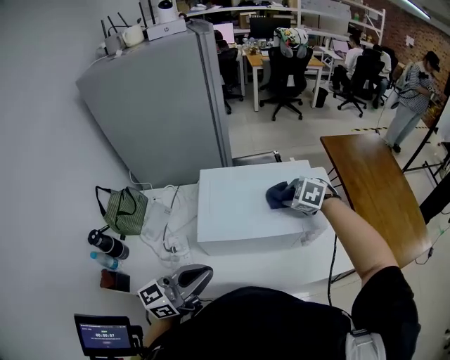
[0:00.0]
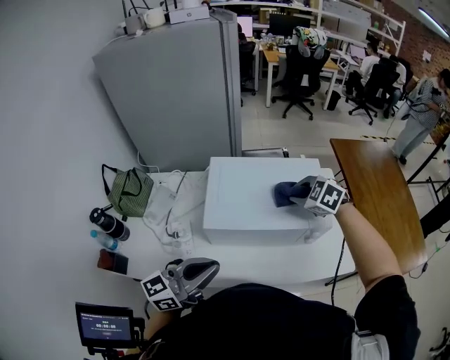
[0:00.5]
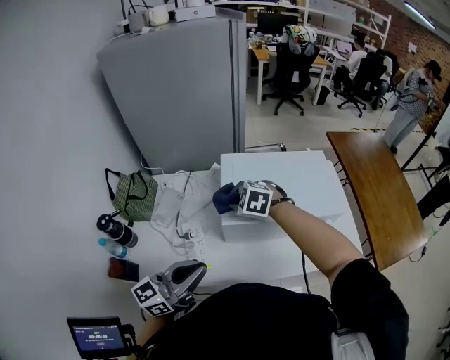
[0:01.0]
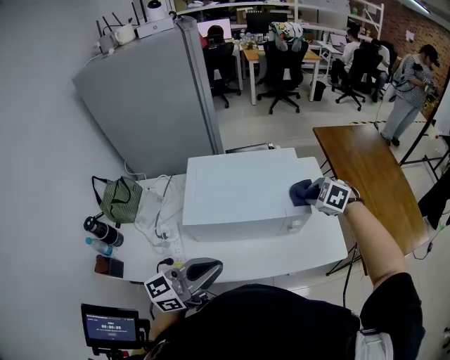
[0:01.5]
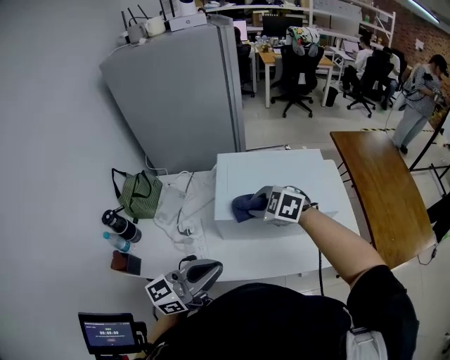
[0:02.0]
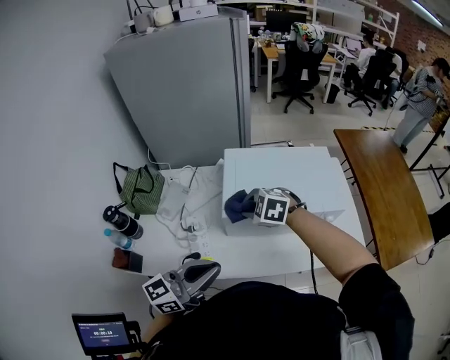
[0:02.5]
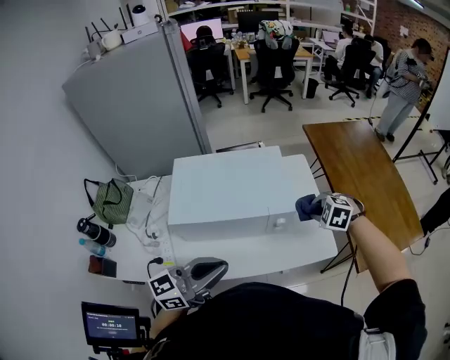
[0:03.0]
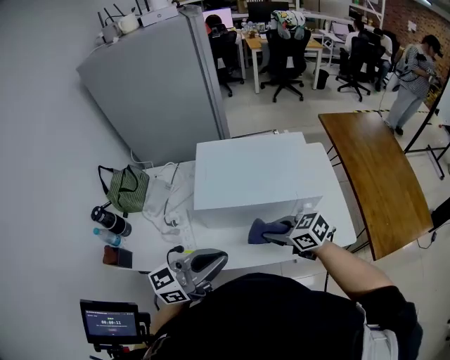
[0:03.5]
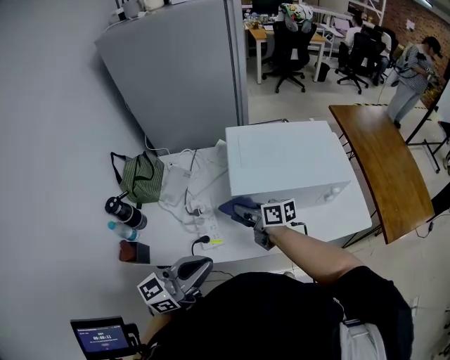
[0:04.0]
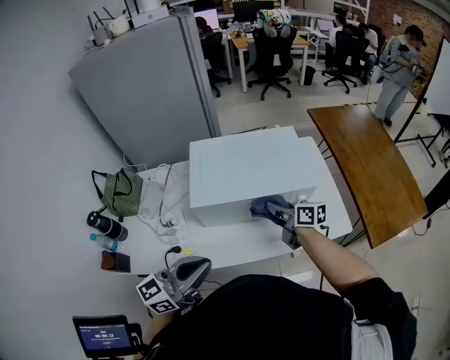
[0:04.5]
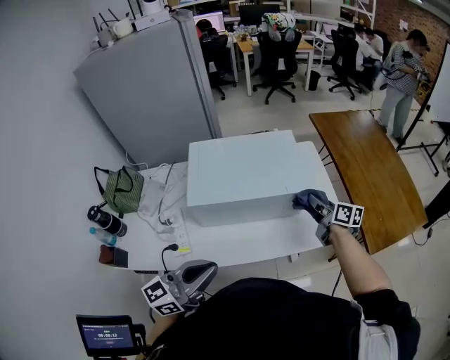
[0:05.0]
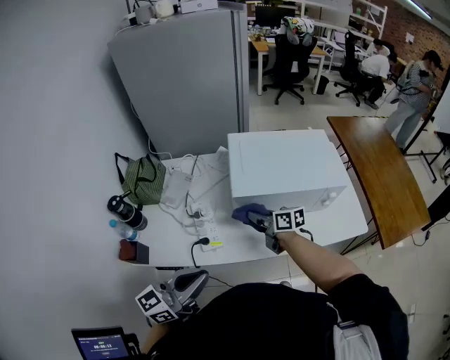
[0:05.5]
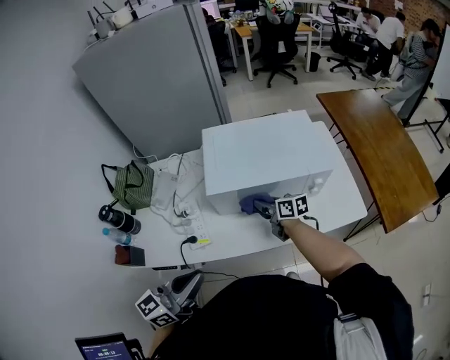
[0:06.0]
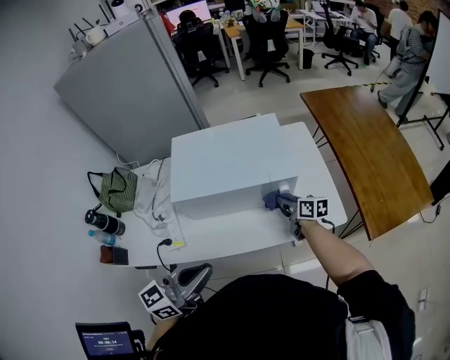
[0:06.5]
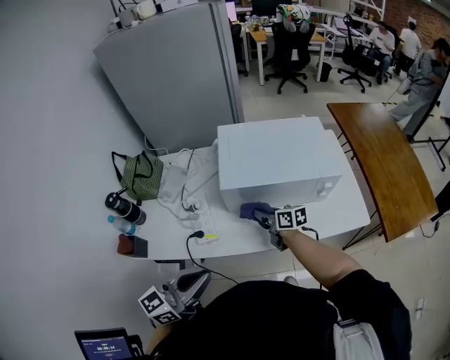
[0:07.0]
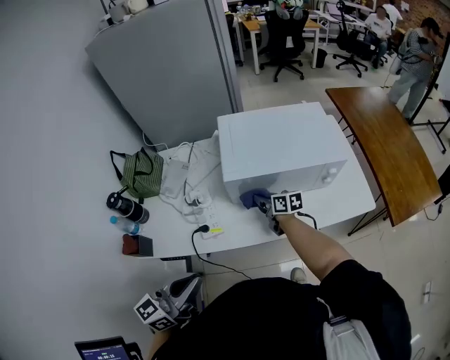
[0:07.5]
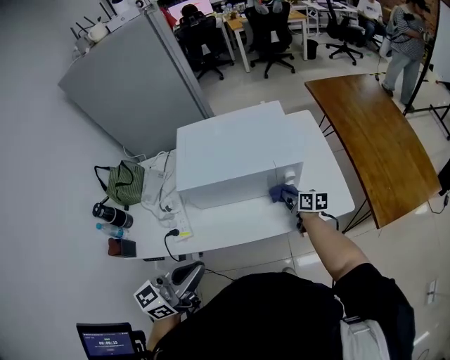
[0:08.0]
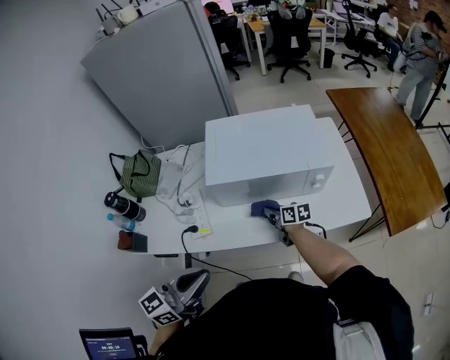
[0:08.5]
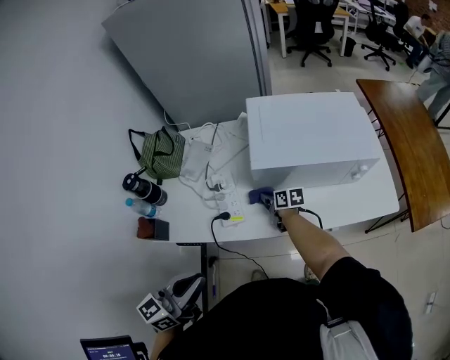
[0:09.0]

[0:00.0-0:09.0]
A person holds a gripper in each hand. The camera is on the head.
0:00.0 to 0:02.0: The left gripper swings left and right, approximately 20 cm each way, with 2 reversals; the right gripper moves left and right over some 40 cm, changing direction 2 times.
0:02.0 to 0:04.5: The right gripper rotates around the line of its fingers by about 70 degrees, clockwise from behind.
0:04.5 to 0:07.0: The right gripper goes left and right, some 40 cm each way, reversing 3 times. The left gripper moves left and right over approximately 20 cm, changing direction 3 times.
0:07.0 to 0:09.0: The left gripper goes left and right, some 25 cm each way, reversing 2 times. The right gripper shifts roughly 10 cm downward, and moves about 25 cm to the right and comes back.

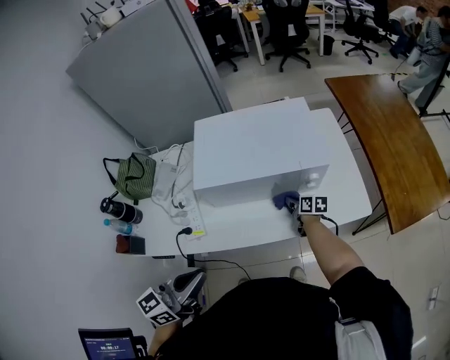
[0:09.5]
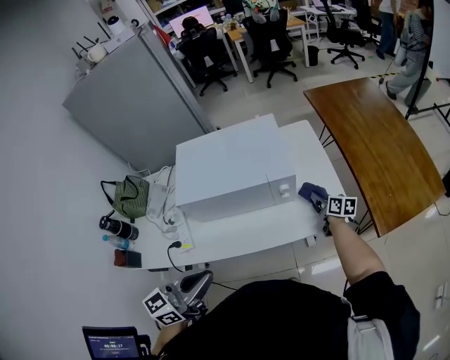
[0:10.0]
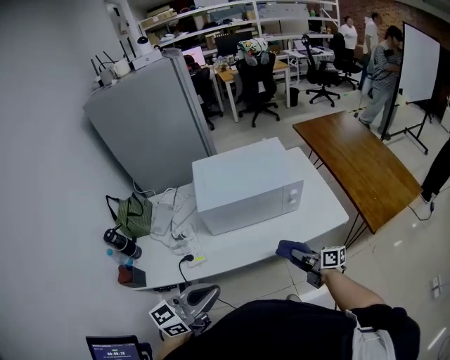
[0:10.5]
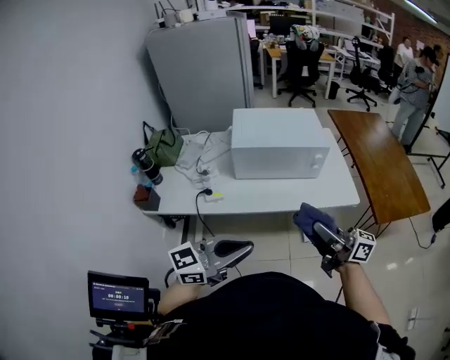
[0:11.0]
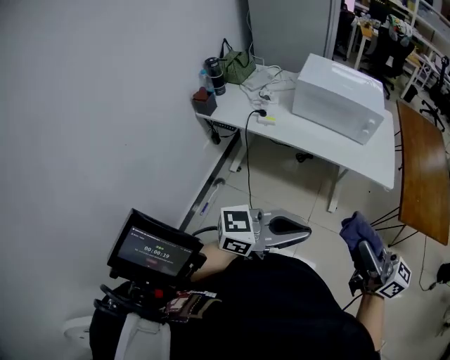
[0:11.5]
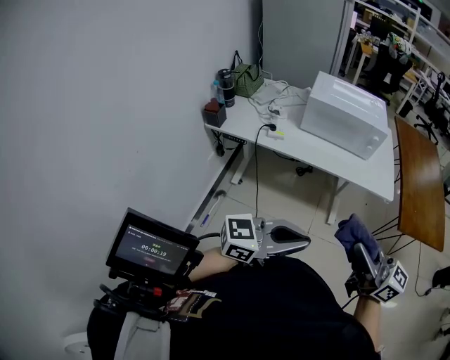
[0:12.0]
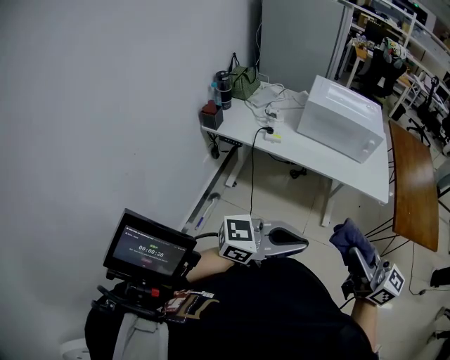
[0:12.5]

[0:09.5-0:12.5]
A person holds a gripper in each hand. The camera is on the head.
0:09.5 to 0:11.0: The right gripper travels backward and upward by some 50 cm, and tilts its fingers roughly 50 degrees upward; the left gripper heads backward, covering approximately 20 cm, and swivels approximately 20 degrees.
0:11.0 to 0:12.5: The left gripper shifts by about 20 cm. The right gripper ends up approximately 25 cm from where it was, and turns by approximately 20 degrees.

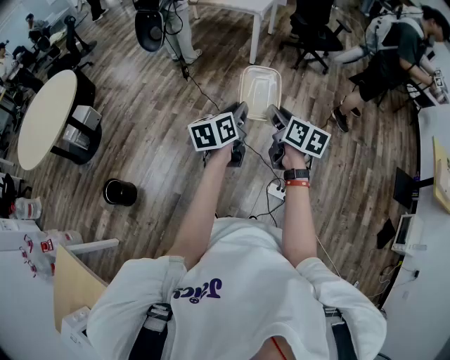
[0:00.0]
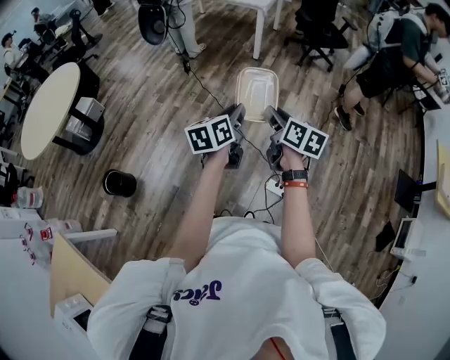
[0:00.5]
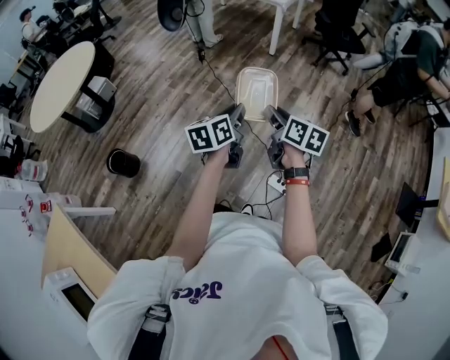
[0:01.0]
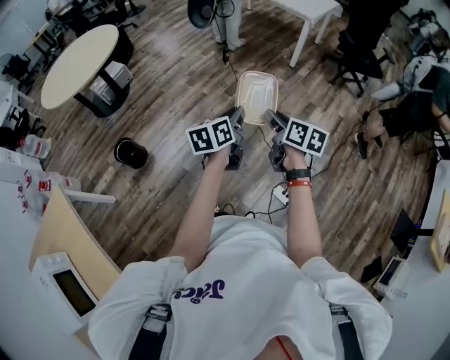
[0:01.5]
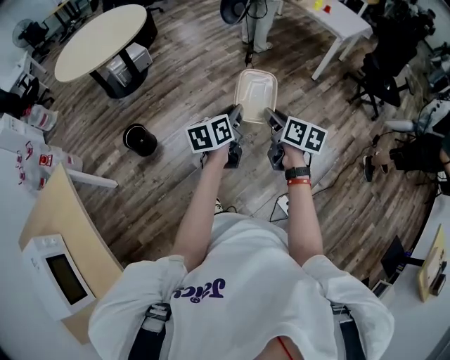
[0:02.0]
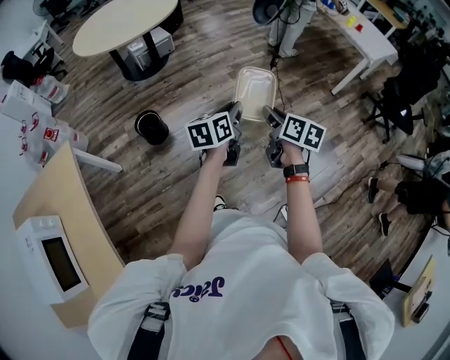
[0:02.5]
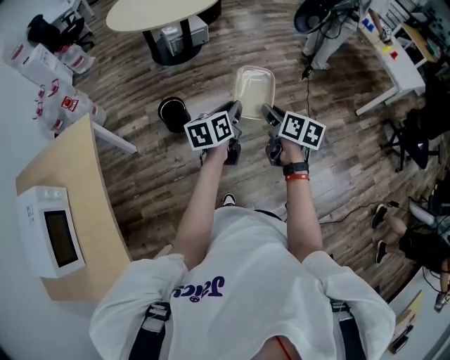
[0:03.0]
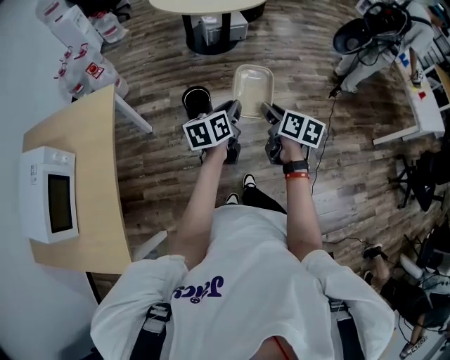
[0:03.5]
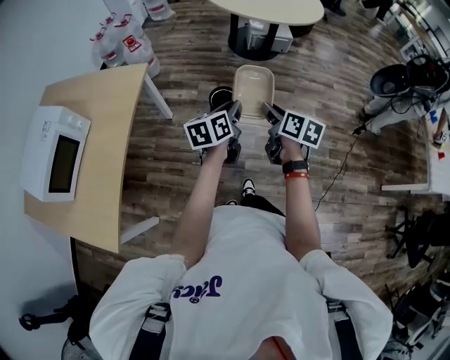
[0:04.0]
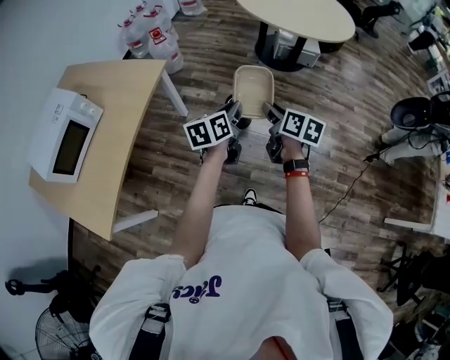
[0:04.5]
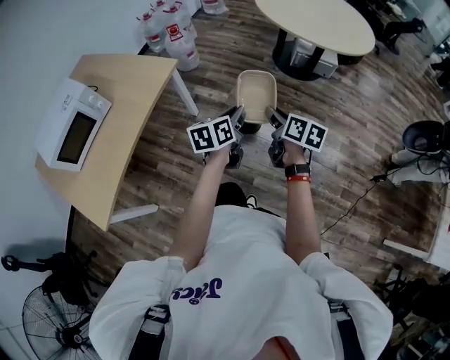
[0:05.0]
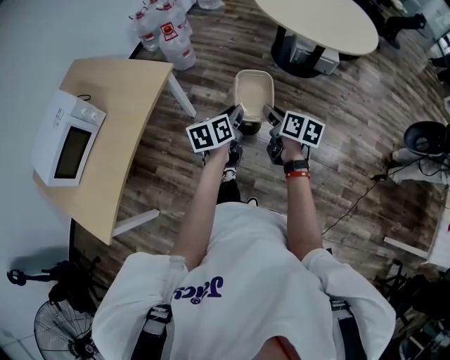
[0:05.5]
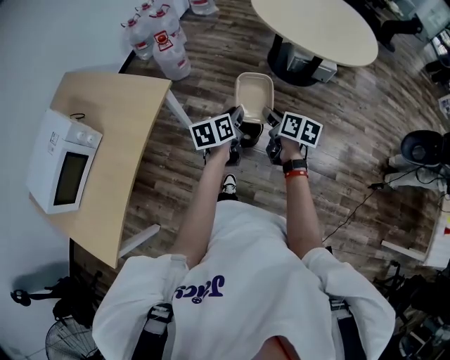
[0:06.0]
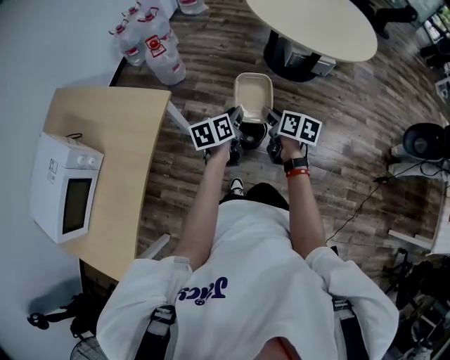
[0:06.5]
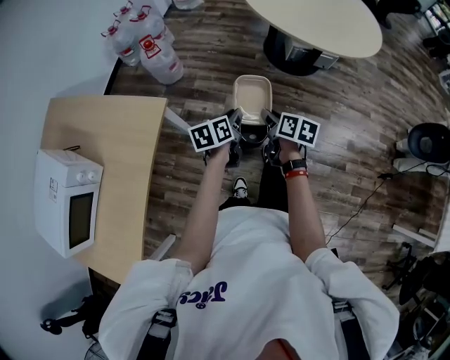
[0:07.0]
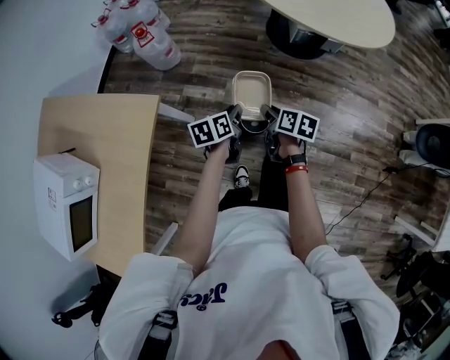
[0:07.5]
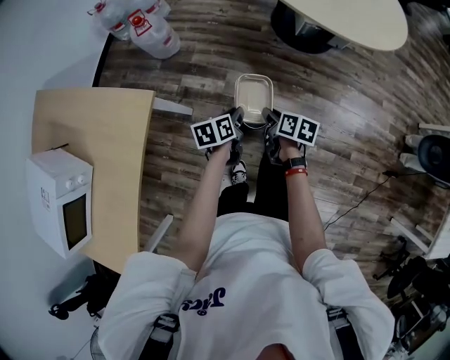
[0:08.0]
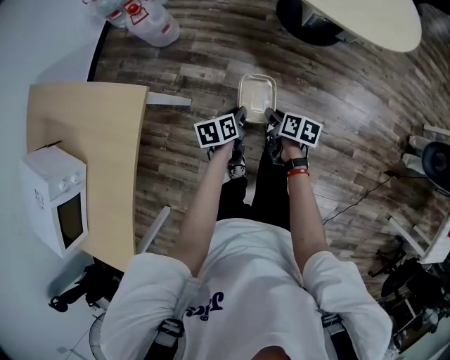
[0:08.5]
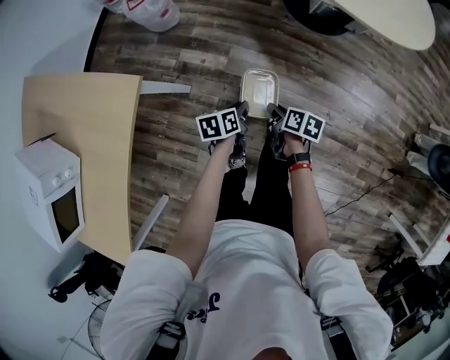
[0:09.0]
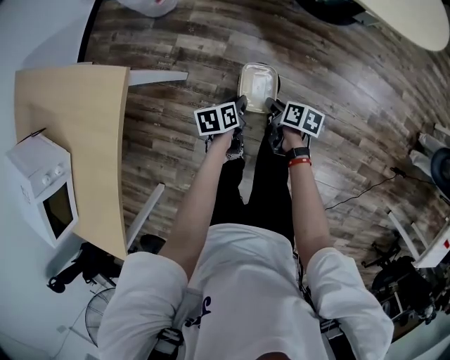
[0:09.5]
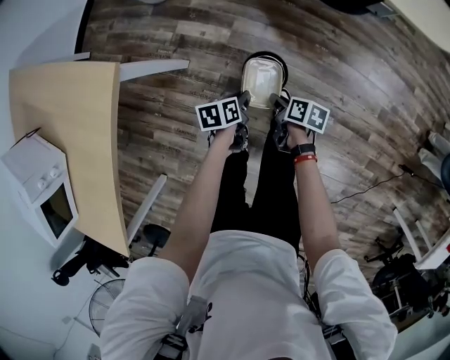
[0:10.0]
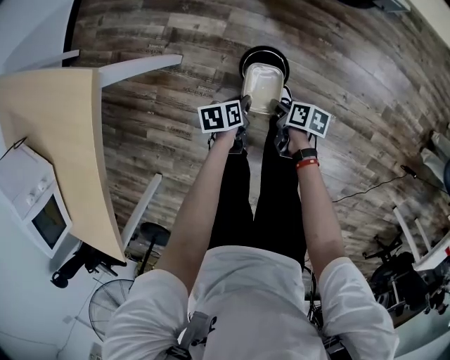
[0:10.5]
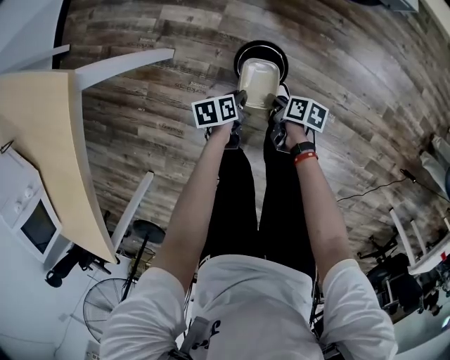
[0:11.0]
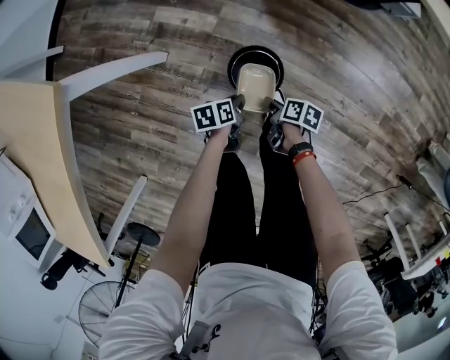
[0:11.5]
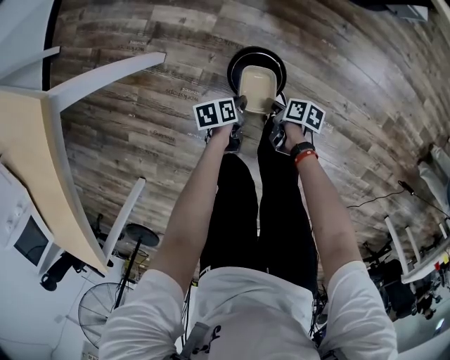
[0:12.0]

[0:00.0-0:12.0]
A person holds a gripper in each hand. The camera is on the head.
0:00.0 to 0:02.0: The left gripper changes place by some 20 cm, and rotates roughly 30 degrees, while the right gripper changes place by about 25 cm, and changes its angle by approximately 30 degrees.
0:02.0 to 0:04.0: The pair of grippers is taken approximately 50 cm. The right gripper swivels approximately 50 degrees, while the left gripper swivels some 50 degrees.
0:04.0 to 0:06.0: The grippers both shift forward by approximately 30 cm.
0:06.0 to 0:08.0: The left gripper heads forward and downward, covering some 30 cm. The right gripper moves downward and forward, some 25 cm.
0:08.0 to 0:10.0: Both grippers move downward, approximately 25 cm.
0:10.0 to 0:12.0: Both grippers travel together downward, about 25 cm.

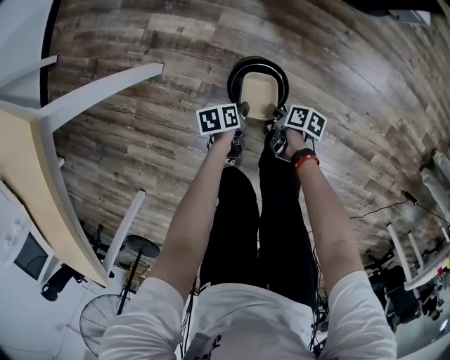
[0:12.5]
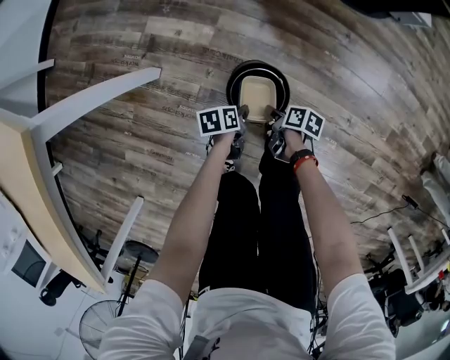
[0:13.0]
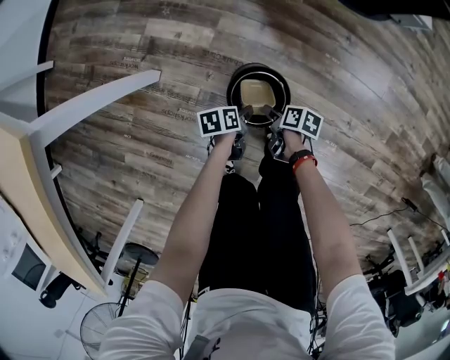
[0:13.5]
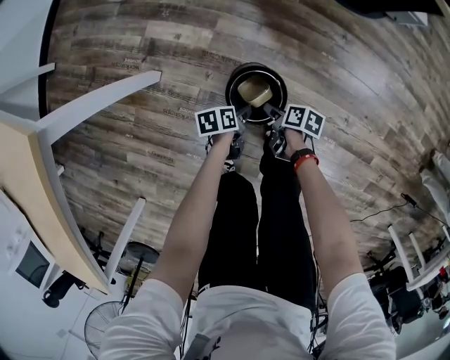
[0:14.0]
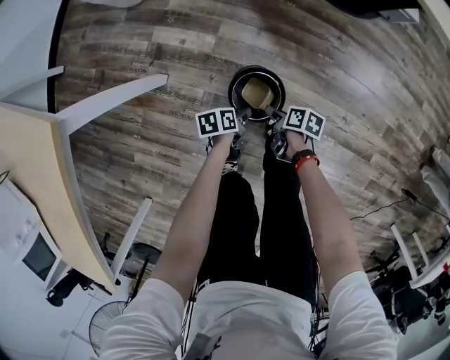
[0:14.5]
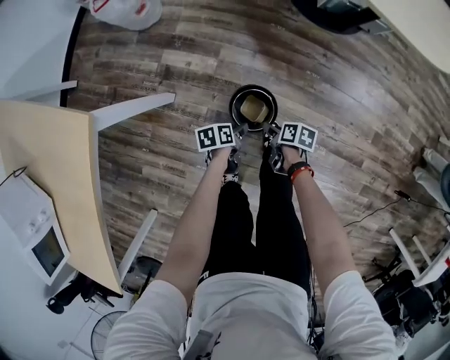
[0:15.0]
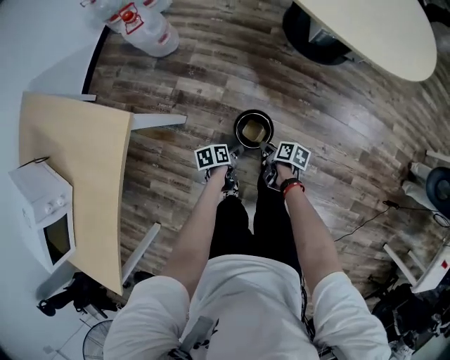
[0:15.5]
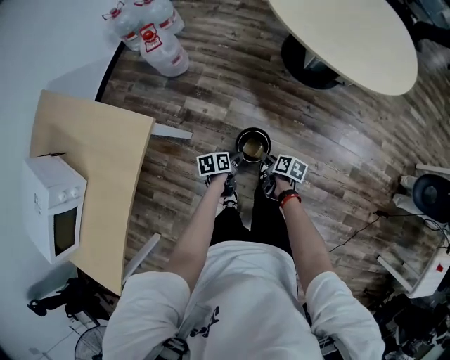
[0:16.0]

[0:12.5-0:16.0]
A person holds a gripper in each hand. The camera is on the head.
0:12.5 to 0:14.5: The left gripper opens, while the right gripper changes place by about 5 cm, and opens up.
0:14.5 to 0:16.0: The grippers both shift upward by about 40 cm.
